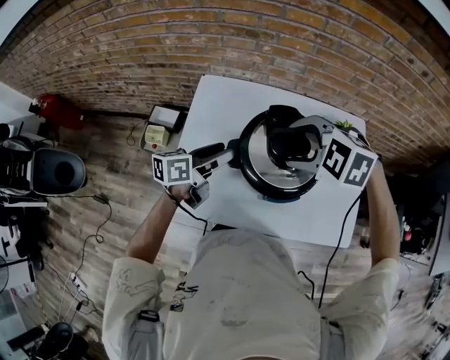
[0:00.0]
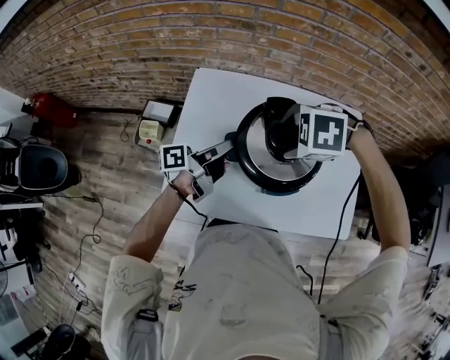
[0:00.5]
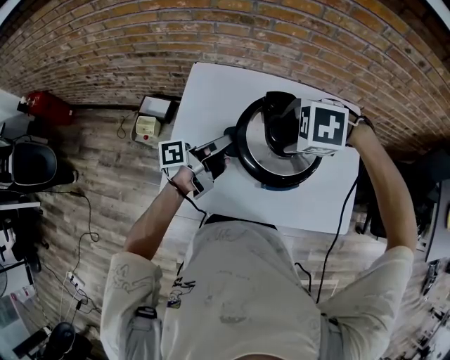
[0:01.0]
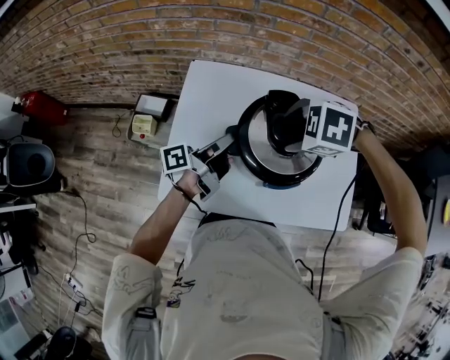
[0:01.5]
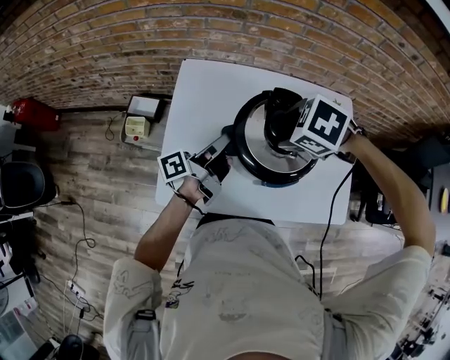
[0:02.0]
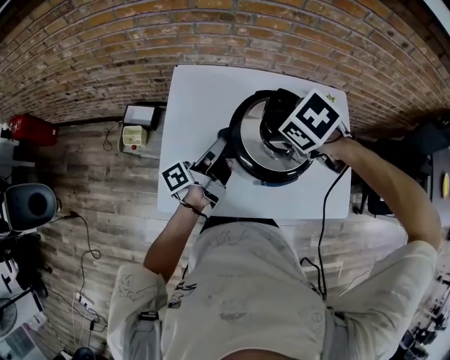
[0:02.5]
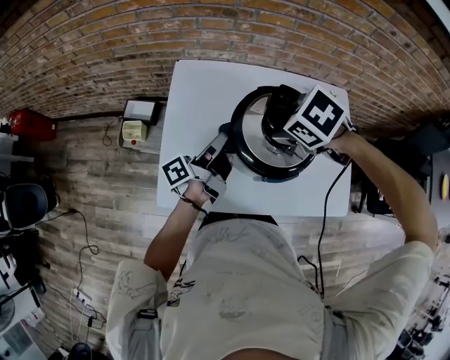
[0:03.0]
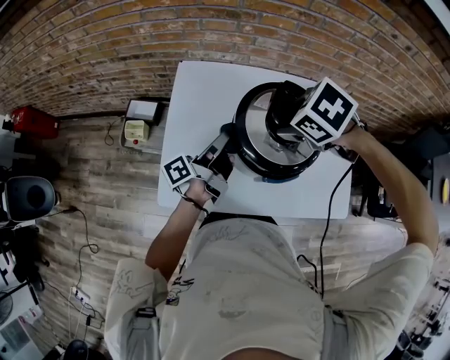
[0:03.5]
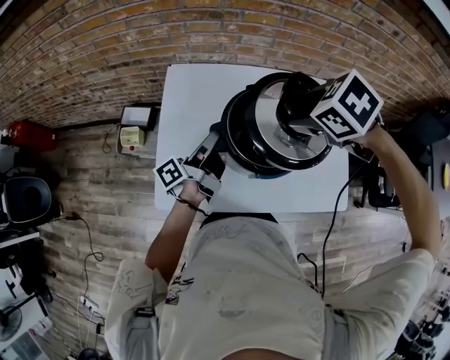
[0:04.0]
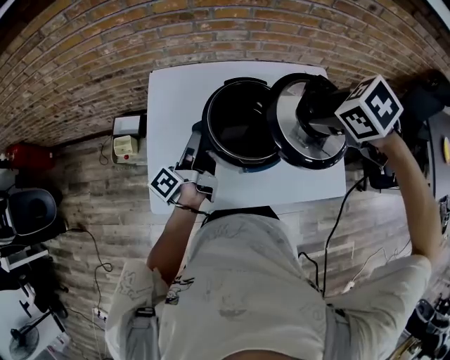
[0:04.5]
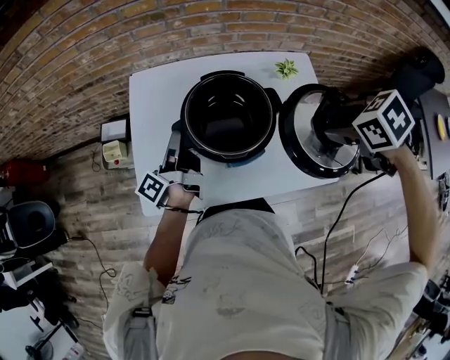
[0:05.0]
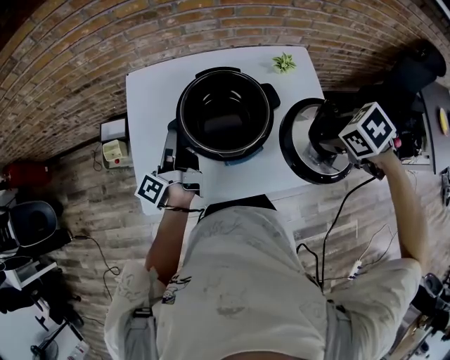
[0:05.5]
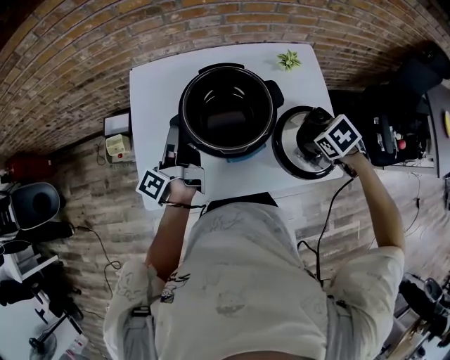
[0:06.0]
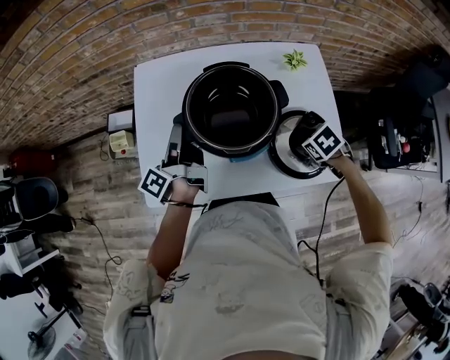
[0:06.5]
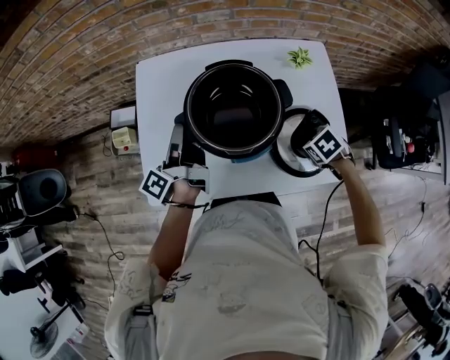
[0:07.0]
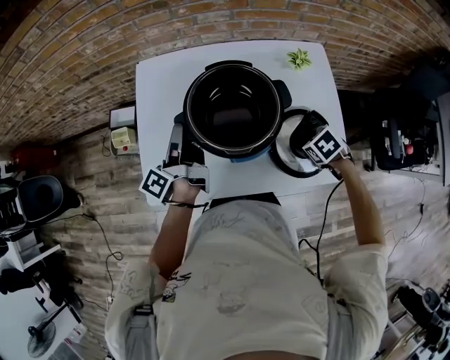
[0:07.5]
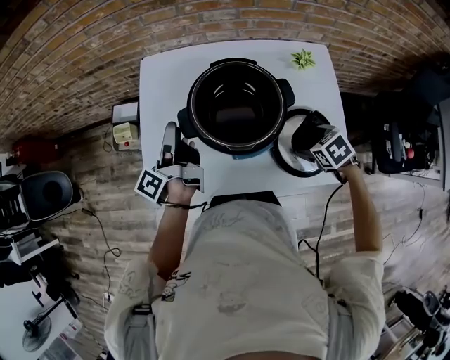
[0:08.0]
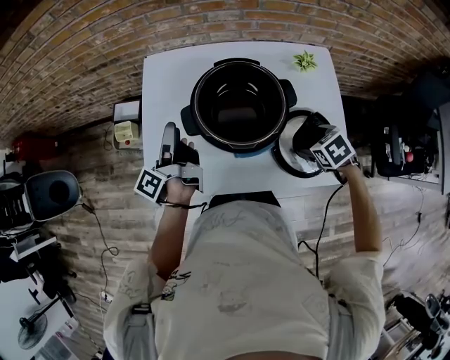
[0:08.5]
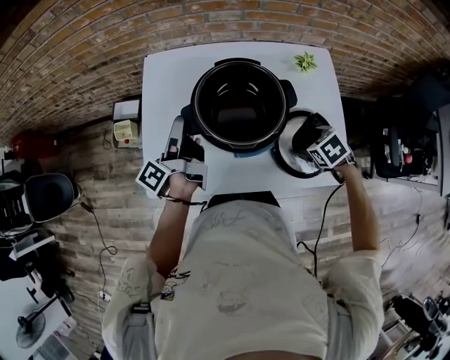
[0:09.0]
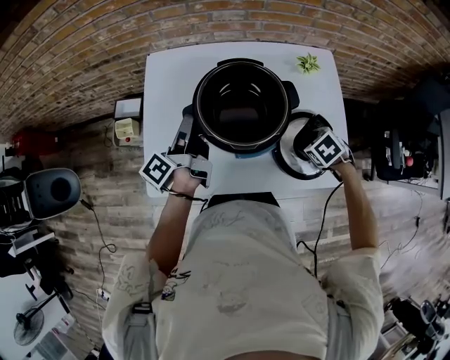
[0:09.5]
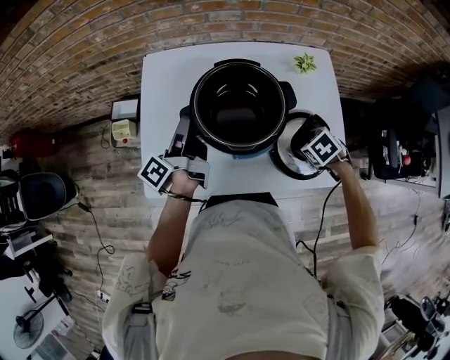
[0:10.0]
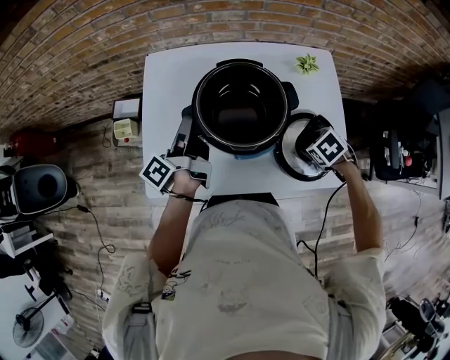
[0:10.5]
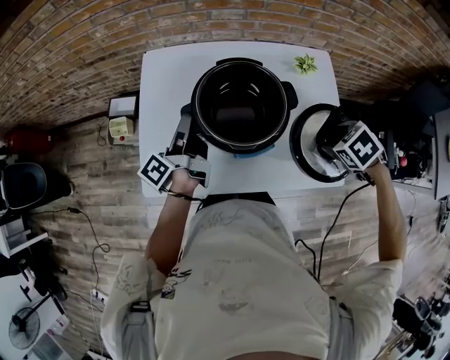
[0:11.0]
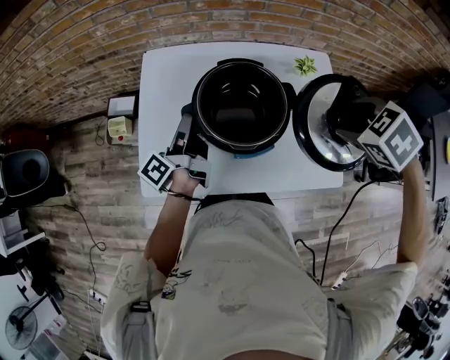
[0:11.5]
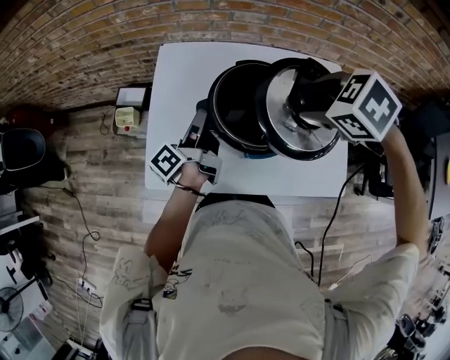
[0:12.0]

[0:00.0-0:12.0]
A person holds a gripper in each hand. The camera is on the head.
0:00.0 to 0:02.0: The left gripper turns by roughly 40 degrees, and closes up; the right gripper rotates about 30 degrees.
0:02.0 to 0:04.0: The right gripper travels upward by roughly 5 cm.
0:04.0 to 0:06.0: The right gripper shifts by roughly 30 cm, and turns by roughly 20 degrees.
0:06.0 to 0:08.0: The right gripper shifts by some 5 cm; the left gripper opens.
0:08.0 to 0:10.0: The left gripper closes up.
0:10.0 to 0:12.0: The right gripper is displaced upward by about 25 cm, and swivels approximately 20 degrees.

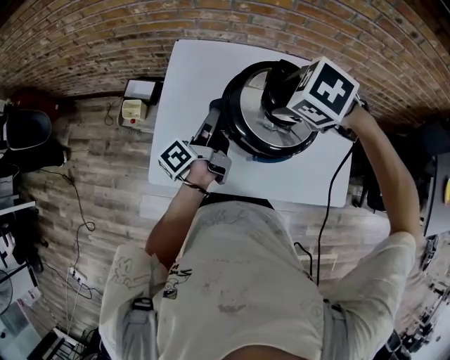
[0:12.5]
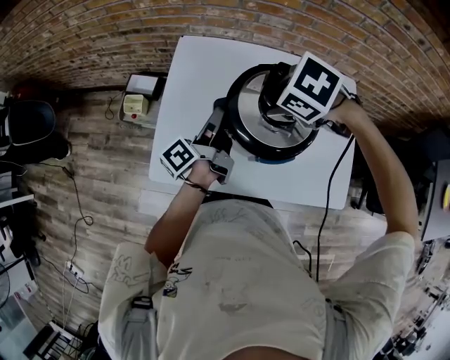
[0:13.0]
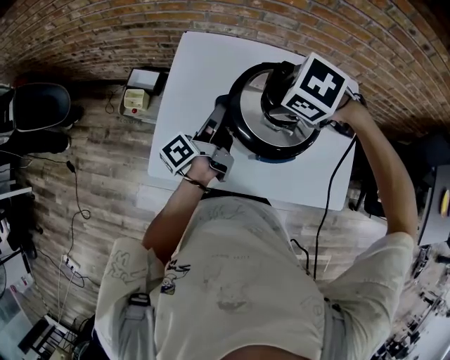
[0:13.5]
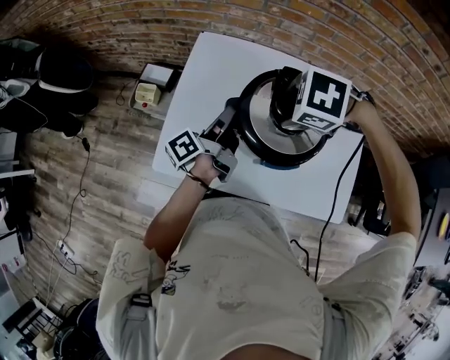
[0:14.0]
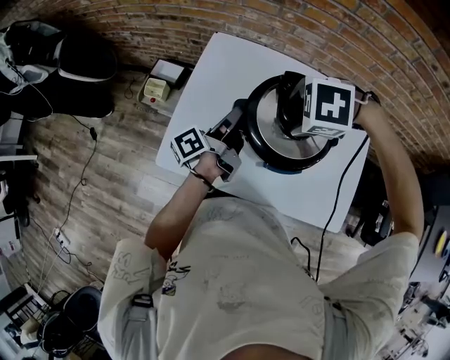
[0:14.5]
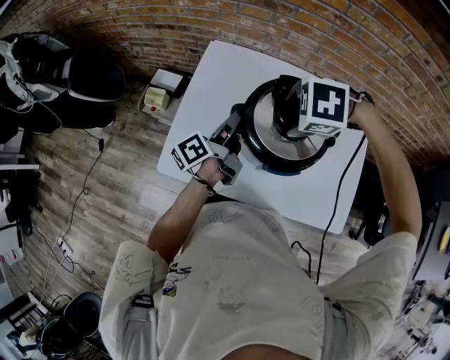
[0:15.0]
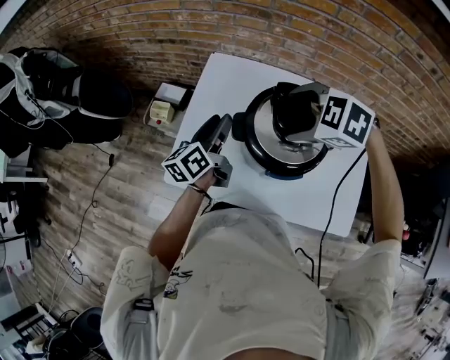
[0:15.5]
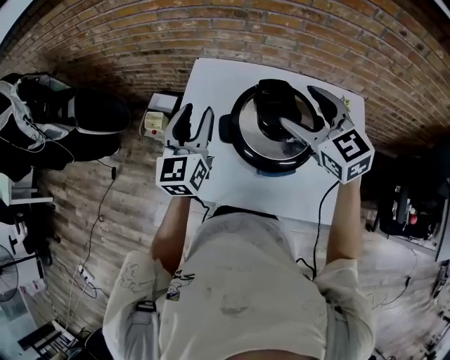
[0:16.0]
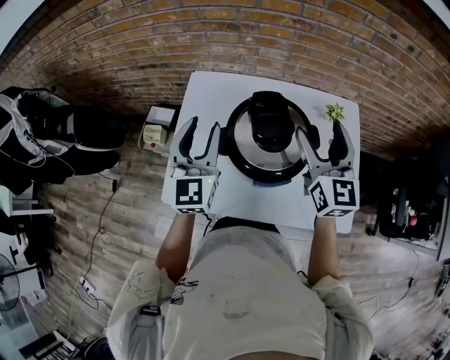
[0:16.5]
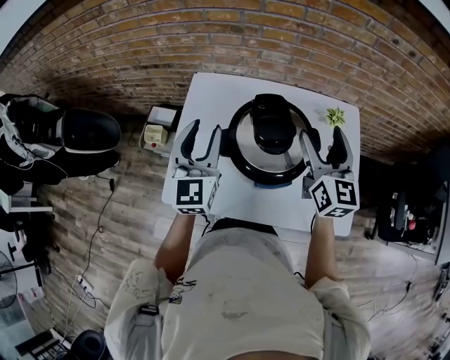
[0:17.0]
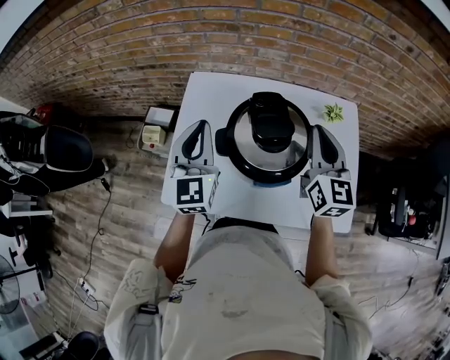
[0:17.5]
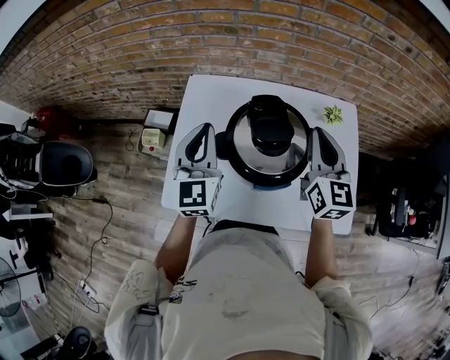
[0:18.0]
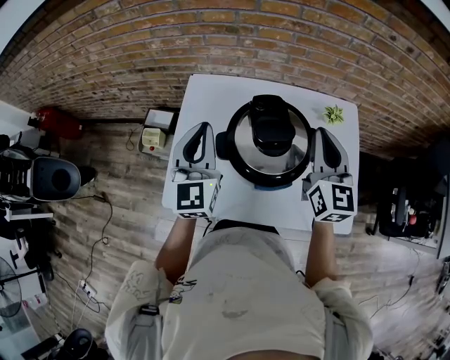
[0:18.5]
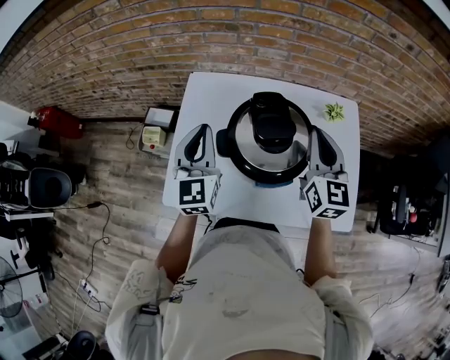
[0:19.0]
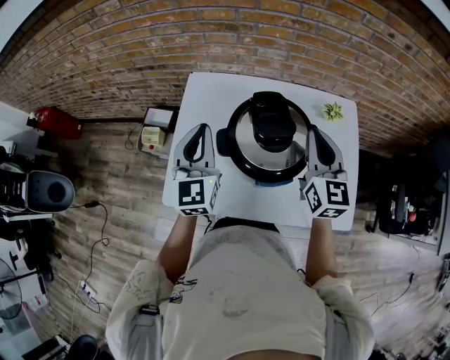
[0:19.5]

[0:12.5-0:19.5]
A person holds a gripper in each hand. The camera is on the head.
0:12.5 to 0:14.5: The right gripper turns by approximately 40 degrees.
0:14.5 to 0:16.0: Both grippers travel together upward, about 10 cm. The left gripper rotates around the line of its fingers by about 80 degrees, clockwise from behind, and opens. Meanwhile the right gripper angles its fingers upward, by roughly 60 degrees.
0:16.0 to 0:17.5: The right gripper shifts roughly 10 cm to the right, rotates approximately 40 degrees, and closes its fingers. The left gripper closes.
0:17.5 to 0:19.5: The grippers make only small movements.

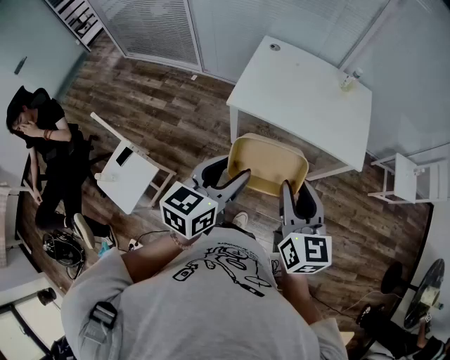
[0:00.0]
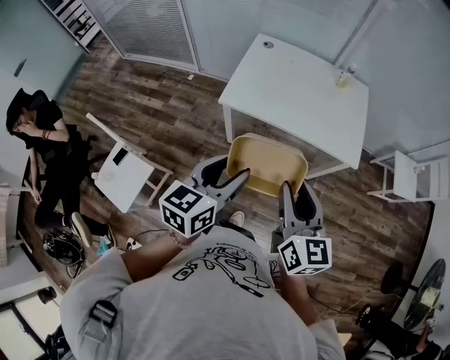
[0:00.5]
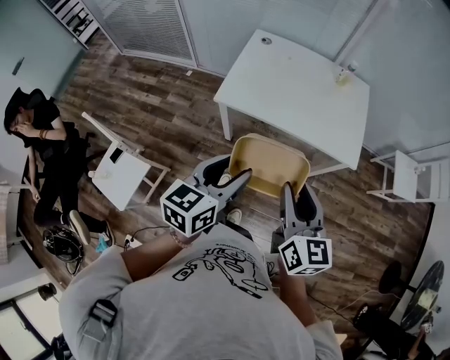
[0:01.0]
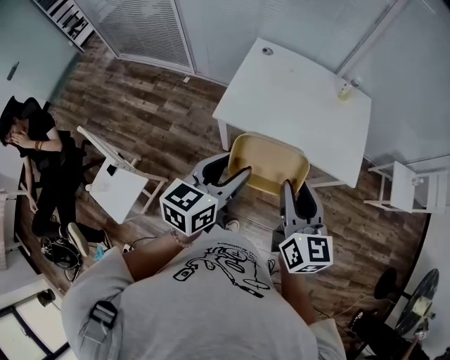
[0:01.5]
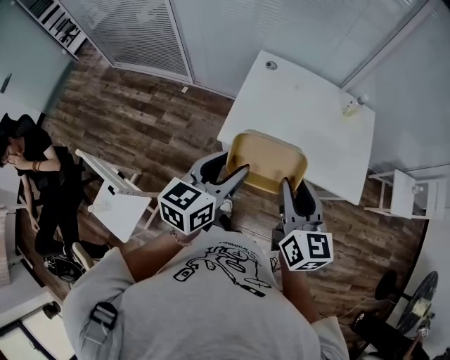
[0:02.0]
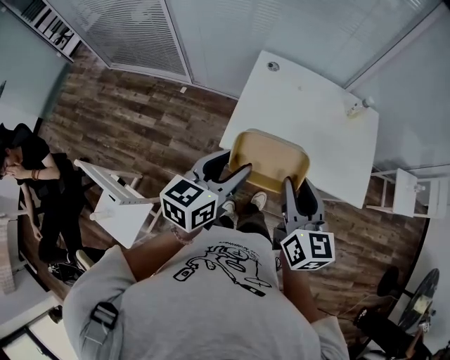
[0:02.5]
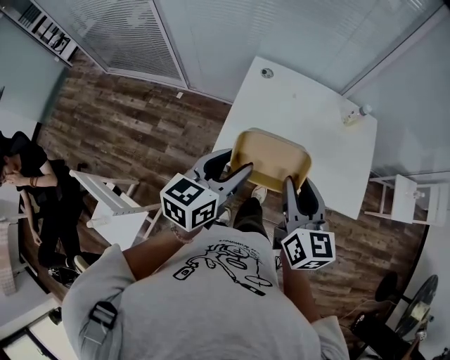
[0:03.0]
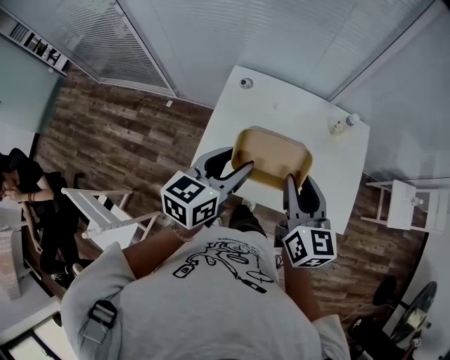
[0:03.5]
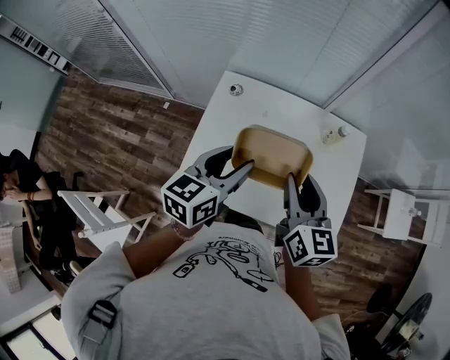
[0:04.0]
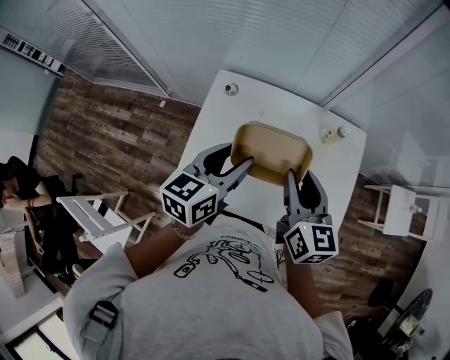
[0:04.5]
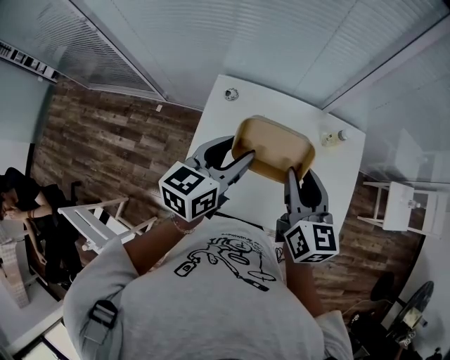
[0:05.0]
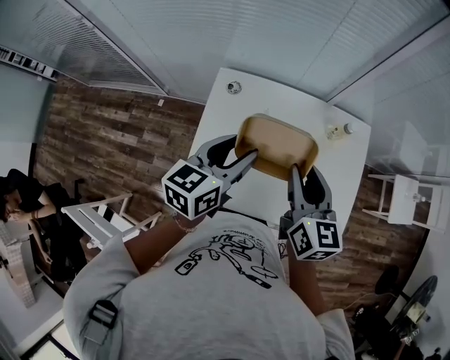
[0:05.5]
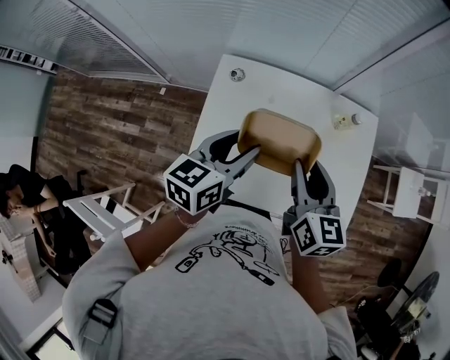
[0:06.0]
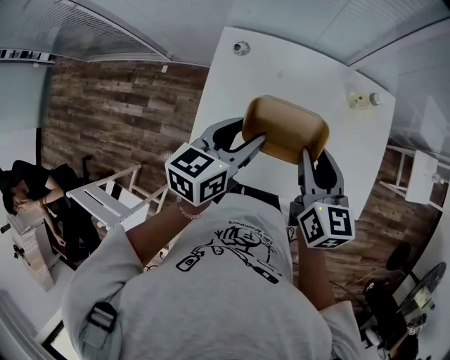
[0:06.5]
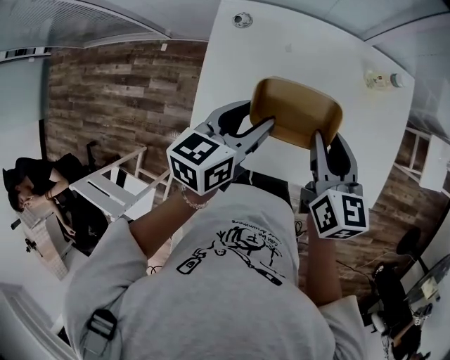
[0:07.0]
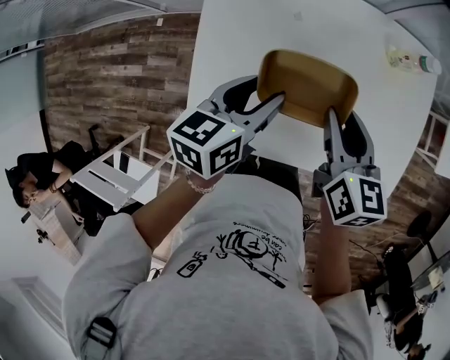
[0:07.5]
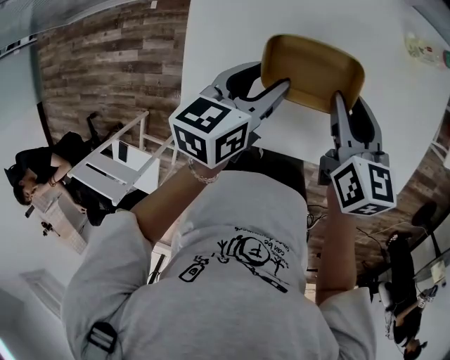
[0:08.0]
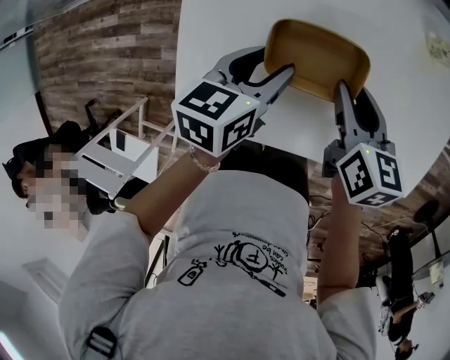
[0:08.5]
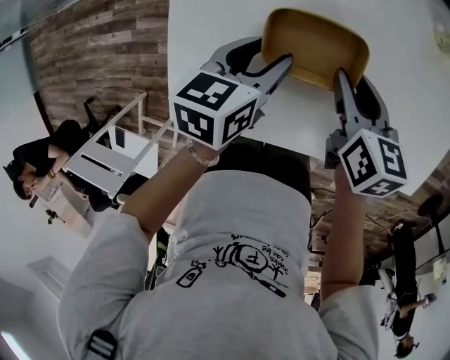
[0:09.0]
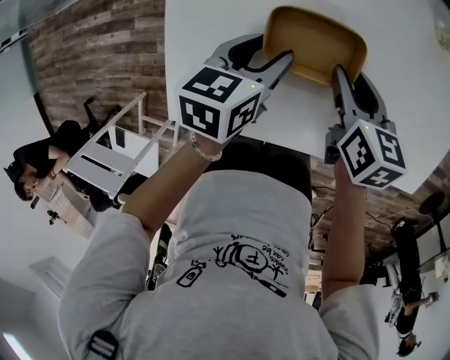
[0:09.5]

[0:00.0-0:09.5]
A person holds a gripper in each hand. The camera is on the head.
0:00.0 to 0:02.0: The grippers both shift forward by about 20 cm.
0:02.0 to 0:04.0: The two grippers go about 35 cm forward and to the right.
0:04.0 to 0:05.5: The left gripper moves forward, roughly 5 cm. Meanwhile the right gripper ends up some 5 cm from where it was.
0:05.5 to 0:07.5: Both grippers move downward, roughly 20 cm.
0:07.5 to 0:09.5: Both grippers travel together downward, approximately 15 cm.
